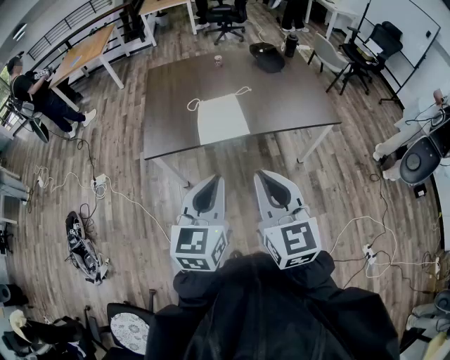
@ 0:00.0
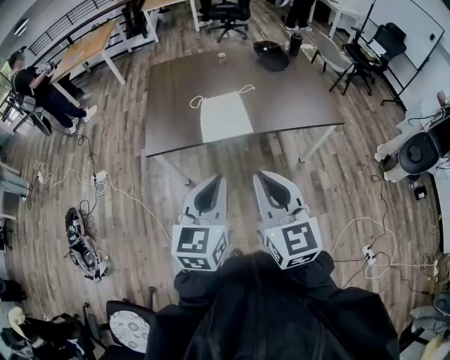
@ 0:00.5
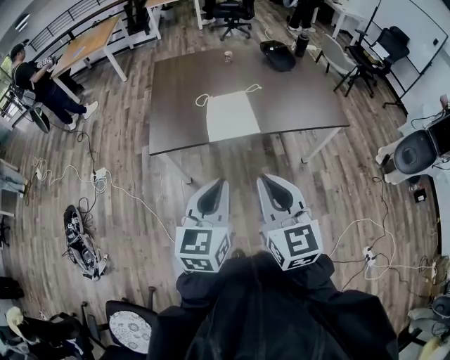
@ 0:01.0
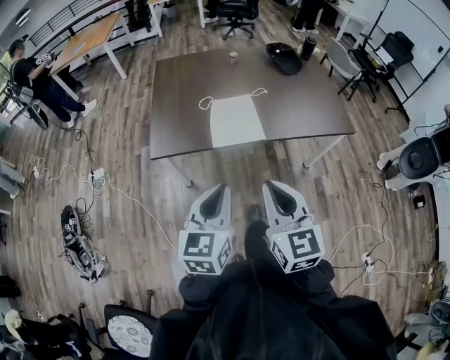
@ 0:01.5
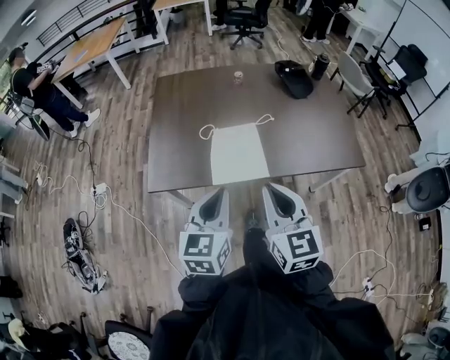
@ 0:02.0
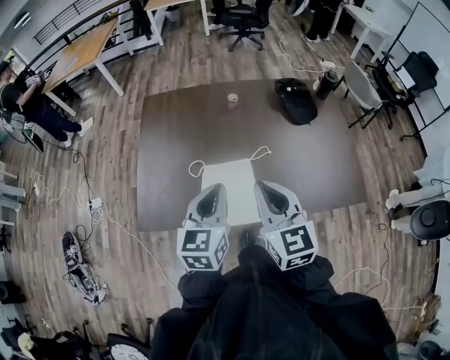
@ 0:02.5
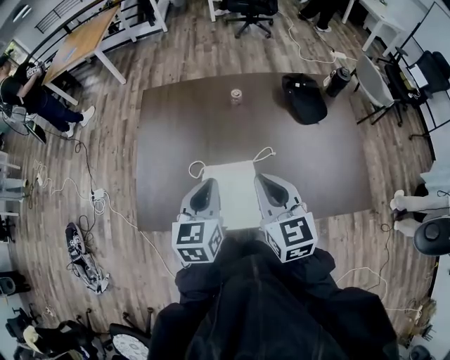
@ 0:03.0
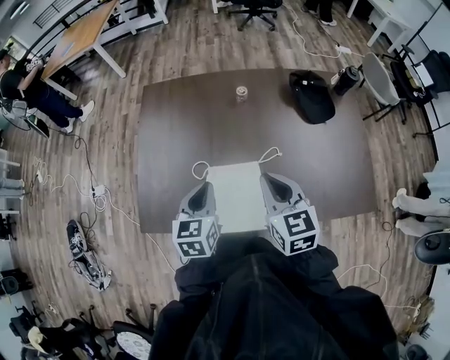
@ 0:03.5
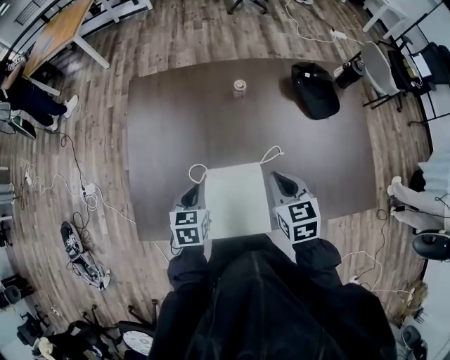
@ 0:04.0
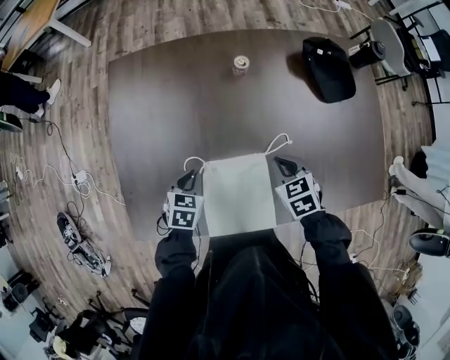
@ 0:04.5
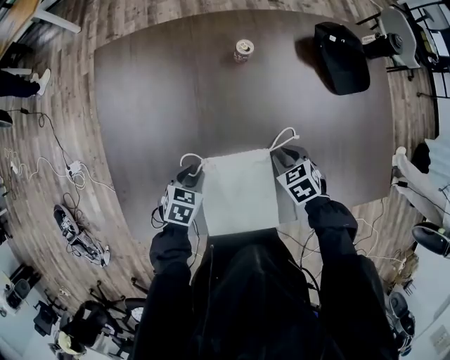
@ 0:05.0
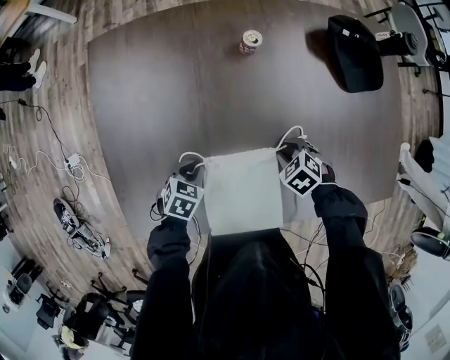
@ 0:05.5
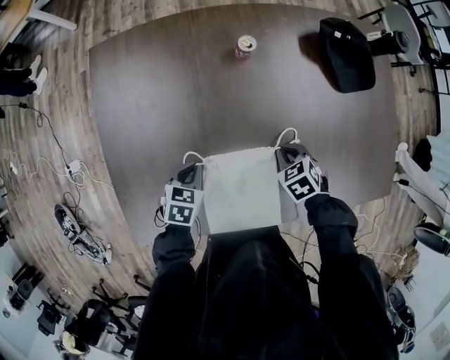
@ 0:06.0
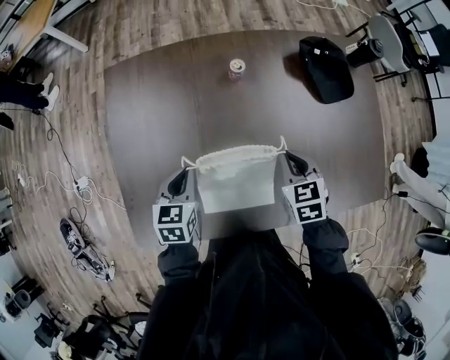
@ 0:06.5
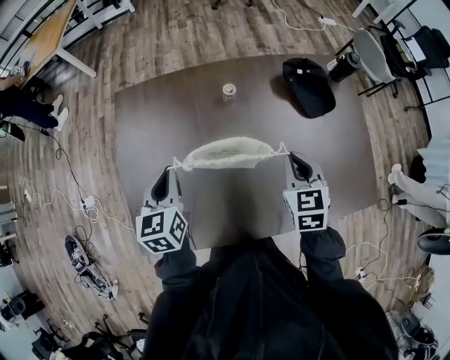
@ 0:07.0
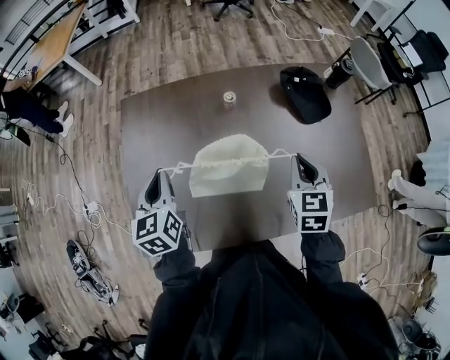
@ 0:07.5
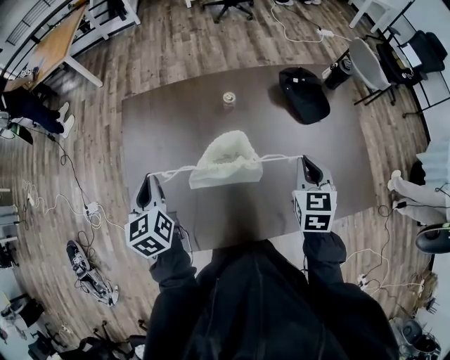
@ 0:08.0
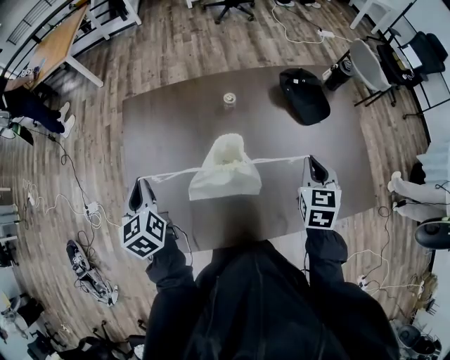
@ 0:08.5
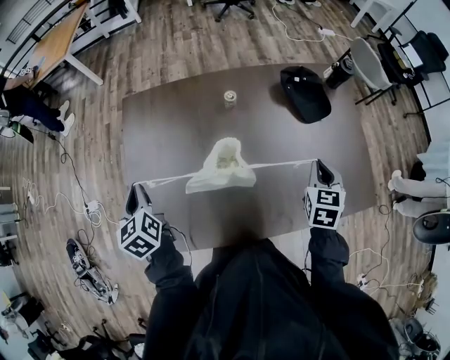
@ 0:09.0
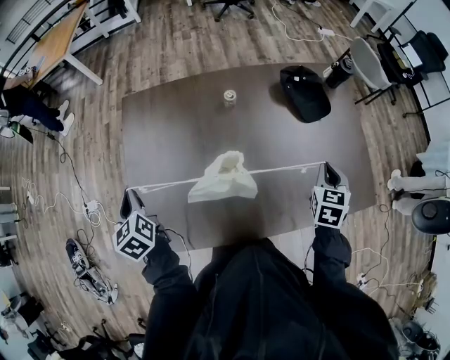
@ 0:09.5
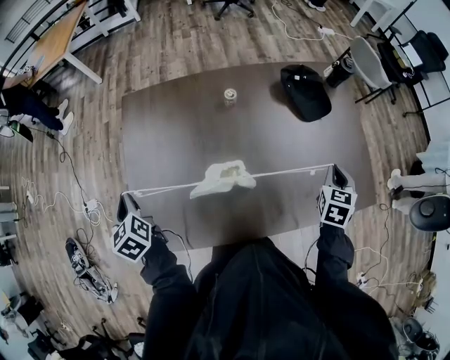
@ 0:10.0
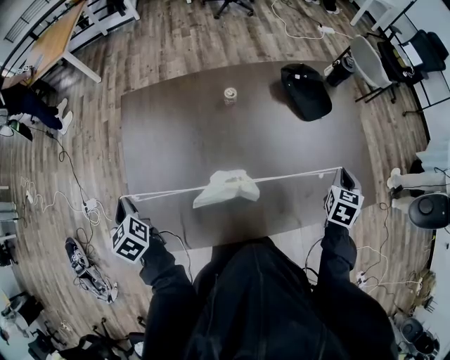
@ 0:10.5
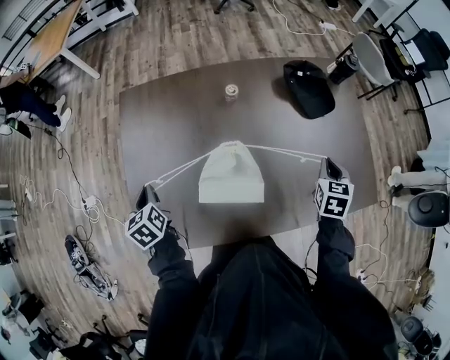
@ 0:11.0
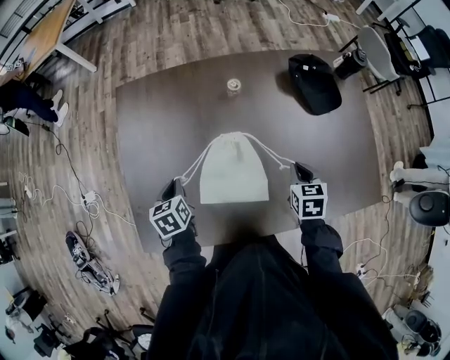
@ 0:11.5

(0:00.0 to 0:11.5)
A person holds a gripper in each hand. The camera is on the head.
0:00.0 - 0:02.0: The grippers both shift forward by about 20 cm.
0:02.0 - 0:04.0: The two grippers go roughly 40 cm forward and downward. The left gripper rotates approximately 30 degrees. The right gripper turns by approximately 30 degrees.
0:04.0 - 0:06.0: The left gripper shifts approximately 15 cm downward, rotates roughly 30 degrees, and opens and closes again; the right gripper heads downward, covering about 25 cm, tips its fingers downward by some 30 degrees, and opens and closes again.
0:06.0 - 0:07.5: The two grippers go roughly 30 cm upward. The left gripper angles its fingers upward, by some 30 degrees, while the right gripper angles its fingers upward, by about 40 degrees.
0:07.5 - 0:09.5: The left gripper is displaced to the left by some 10 cm, and changes its angle by approximately 20 degrees. Meanwhile the right gripper goes roughly 10 cm to the right.
0:09.5 - 0:11.5: The right gripper travels downward and to the left by some 15 cm, and changes its angle by roughly 20 degrees; the left gripper goes some 20 cm downward and to the right, and rotates roughly 30 degrees.

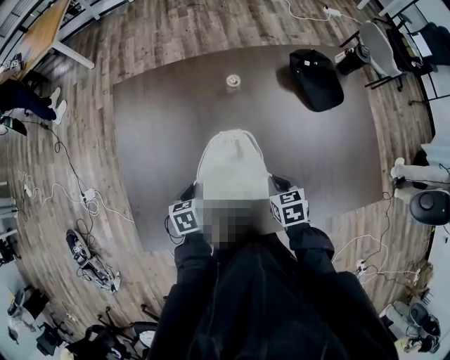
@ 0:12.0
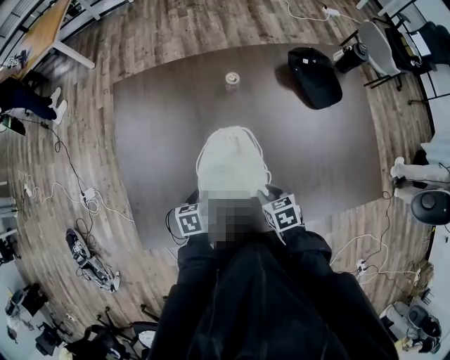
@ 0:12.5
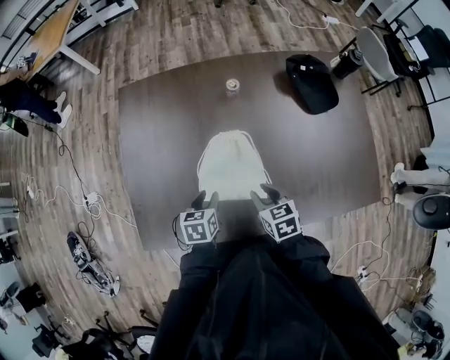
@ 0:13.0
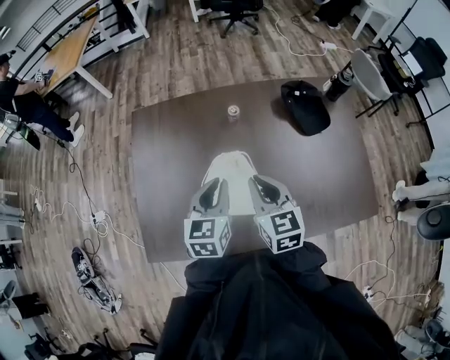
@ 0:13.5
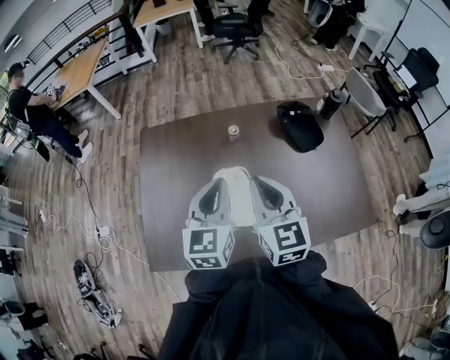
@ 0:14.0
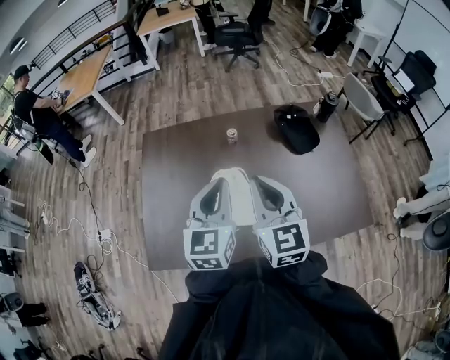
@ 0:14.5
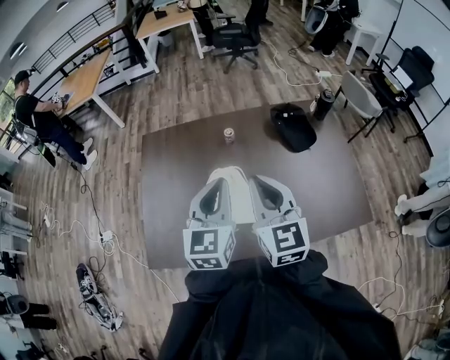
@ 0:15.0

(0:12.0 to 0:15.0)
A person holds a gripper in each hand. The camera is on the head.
0:12.0 - 0:13.5: The right gripper goes approximately 25 cm upward, points its fingers roughly 30 degrees further upward, and opens, then closes again. The left gripper moves upward and to the right, about 25 cm, and tips its fingers upward by approximately 30 degrees.
0:13.5 - 0:15.0: Both grippers move upward and backward, roughly 15 cm.

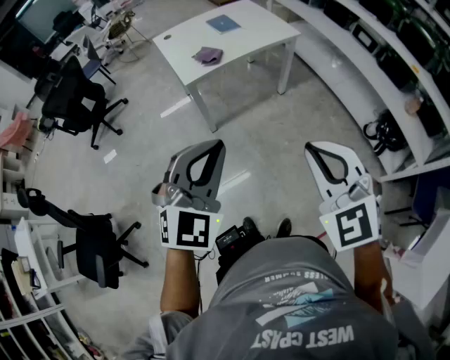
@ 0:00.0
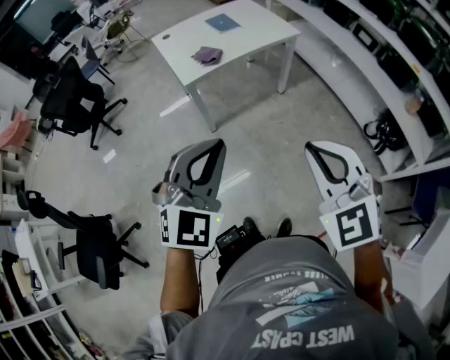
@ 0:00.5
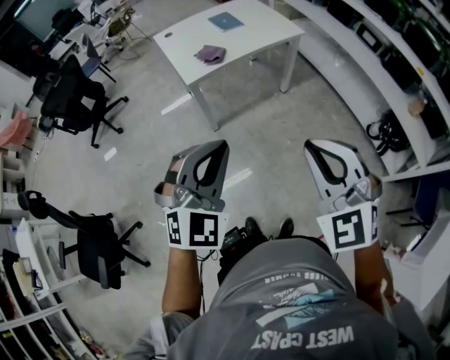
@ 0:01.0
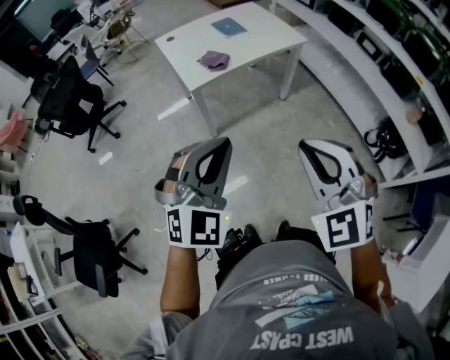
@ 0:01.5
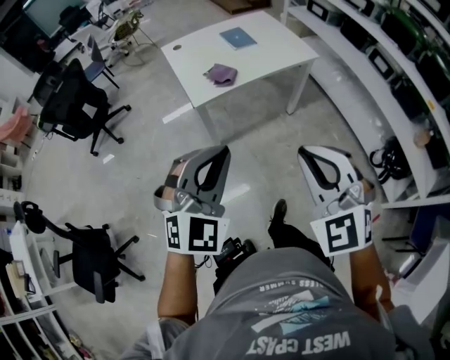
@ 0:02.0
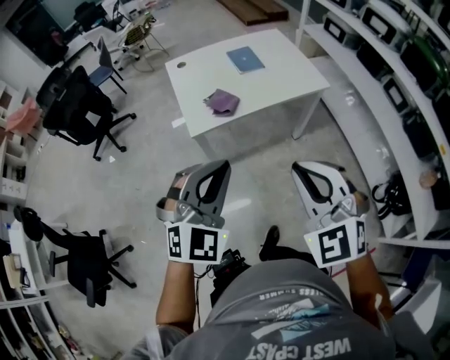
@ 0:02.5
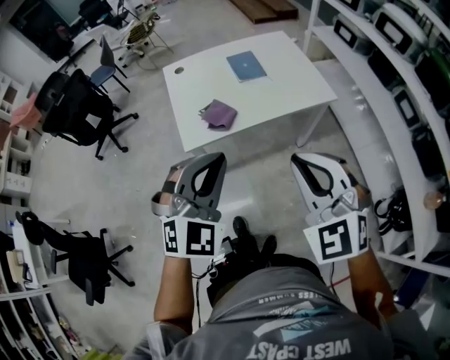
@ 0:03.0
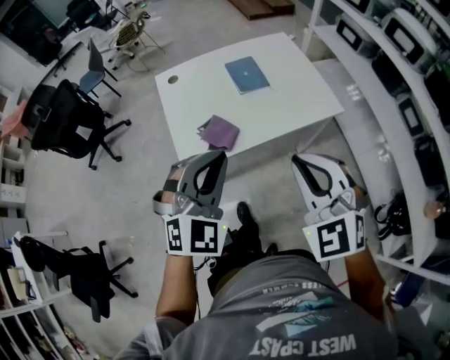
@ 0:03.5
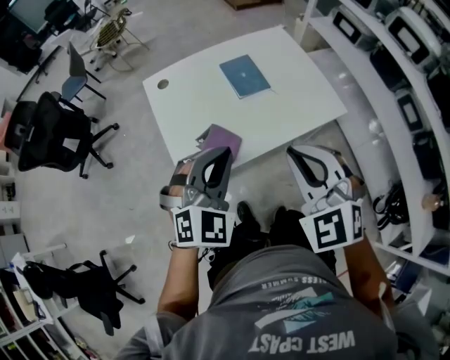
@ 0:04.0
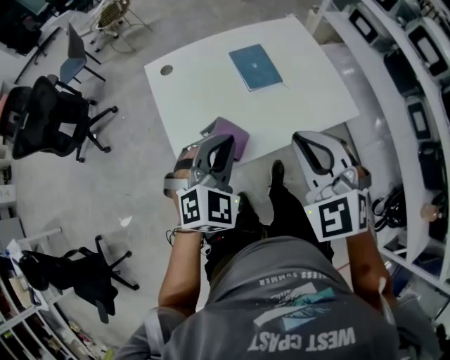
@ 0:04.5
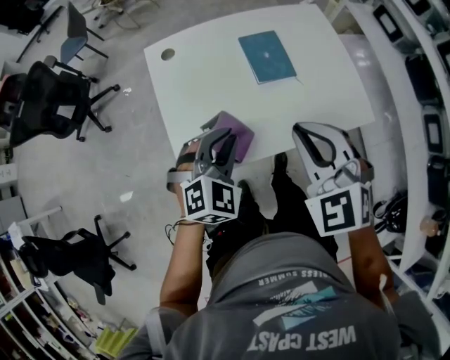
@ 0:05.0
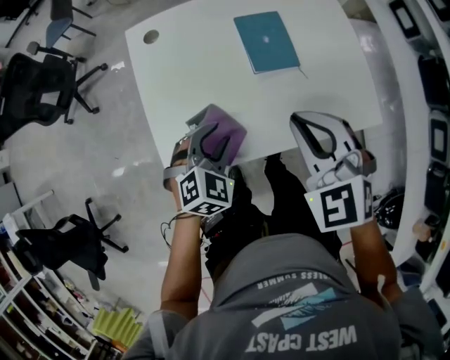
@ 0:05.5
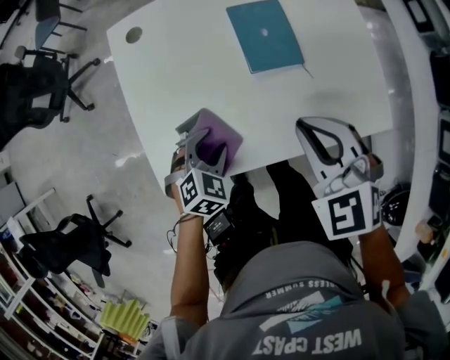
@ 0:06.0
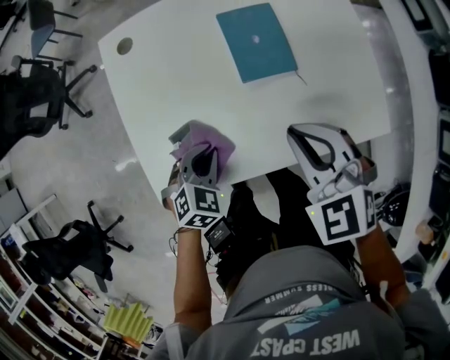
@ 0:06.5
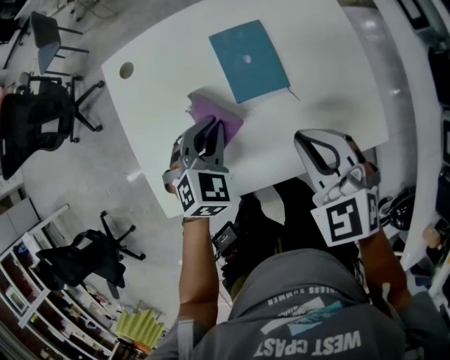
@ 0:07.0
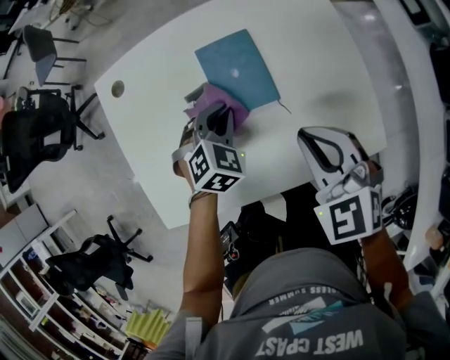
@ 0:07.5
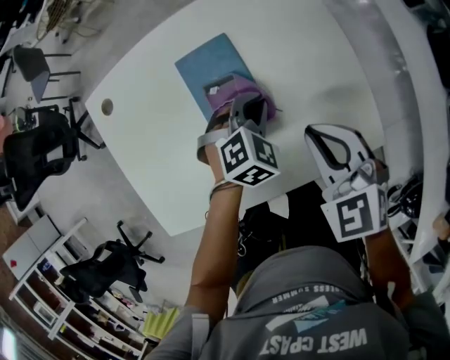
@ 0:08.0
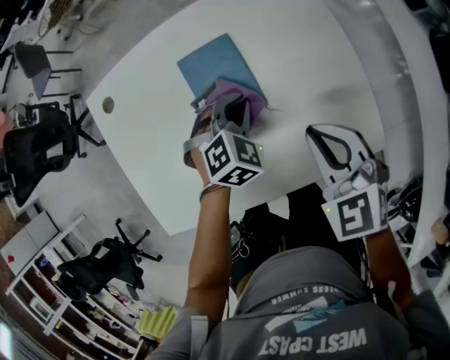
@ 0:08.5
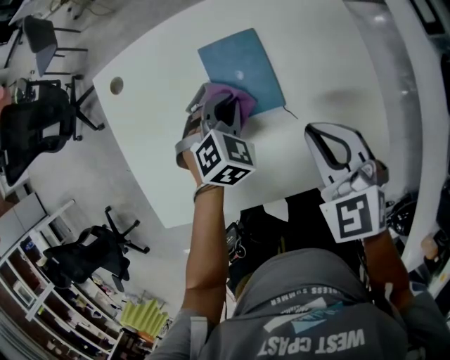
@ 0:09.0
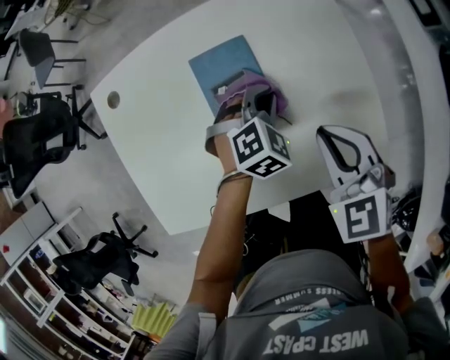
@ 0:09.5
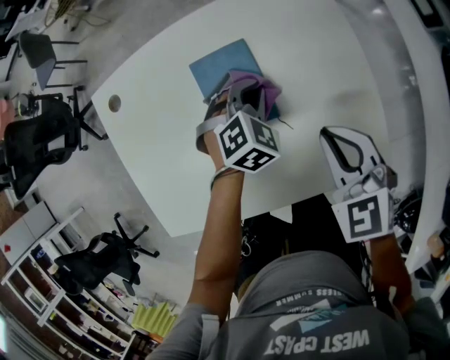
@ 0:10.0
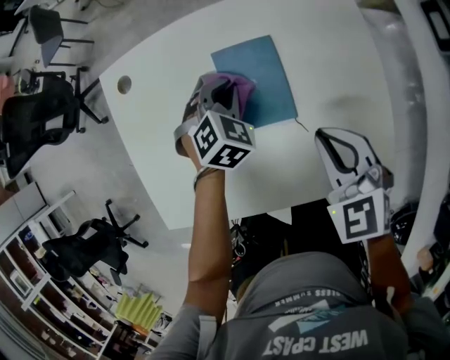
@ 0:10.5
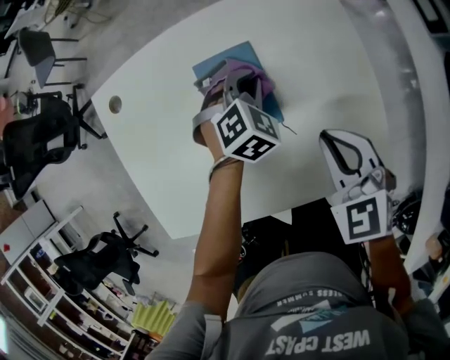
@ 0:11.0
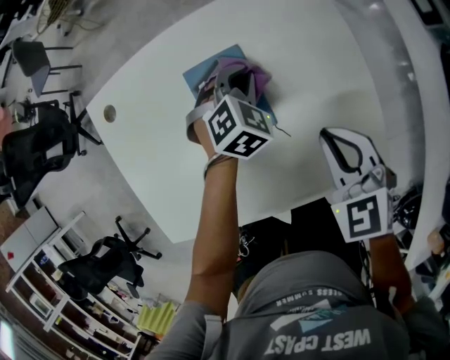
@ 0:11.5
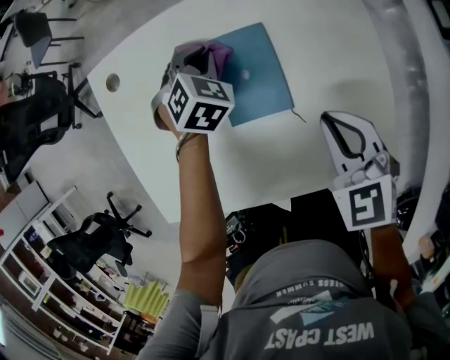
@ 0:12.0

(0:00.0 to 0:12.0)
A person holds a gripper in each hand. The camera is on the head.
0:00.0 - 0:02.0: Both grippers move forward, roughly 15 cm.
0:02.0 - 0:04.0: The pair of grippers is taken forward, roughly 40 cm.
0:04.0 - 0:06.0: The right gripper goes some 25 cm forward and downward, and swivels approximately 20 degrees; the left gripper travels downward by roughly 30 cm, tilts its fingers about 40 degrees downward, and opens.
0:06.0 - 0:08.0: The right gripper heads to the right and forward, covering some 15 cm. Meanwhile the left gripper shifts approximately 30 cm to the right and forward, and closes.
0:08.0 - 0:10.0: The left gripper shifts roughly 5 cm forward, and goes to the left and returns, some 10 cm each way.
0:10.0 - 0:12.0: The left gripper moves left and right over about 15 cm, changing direction 2 times.
